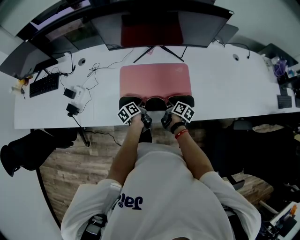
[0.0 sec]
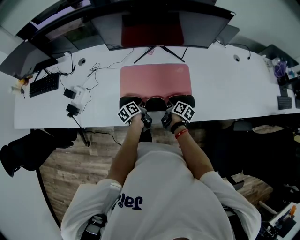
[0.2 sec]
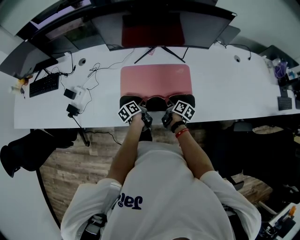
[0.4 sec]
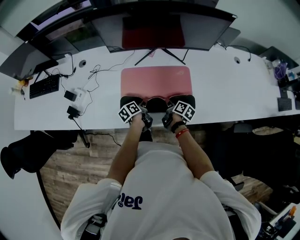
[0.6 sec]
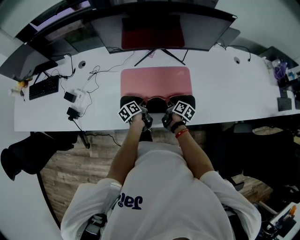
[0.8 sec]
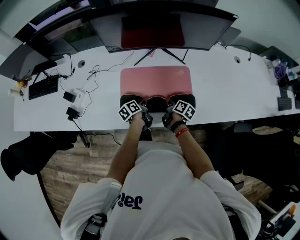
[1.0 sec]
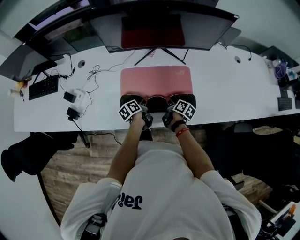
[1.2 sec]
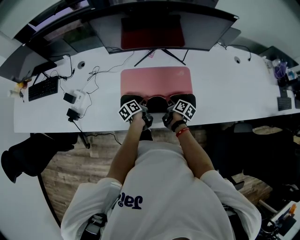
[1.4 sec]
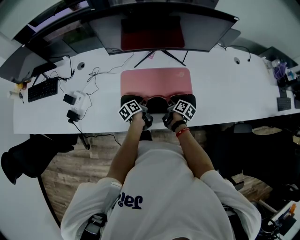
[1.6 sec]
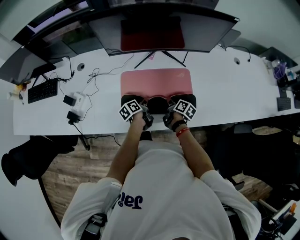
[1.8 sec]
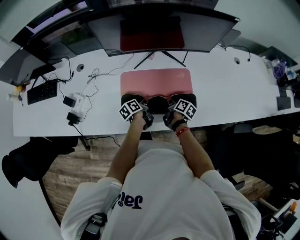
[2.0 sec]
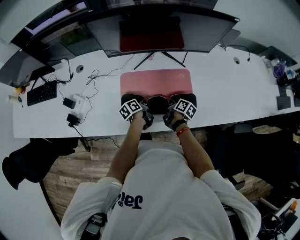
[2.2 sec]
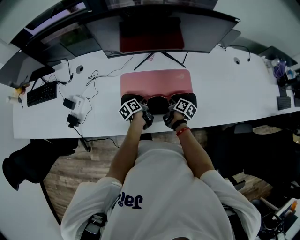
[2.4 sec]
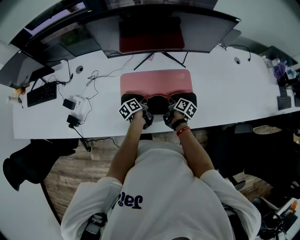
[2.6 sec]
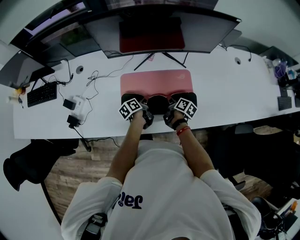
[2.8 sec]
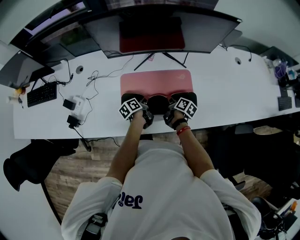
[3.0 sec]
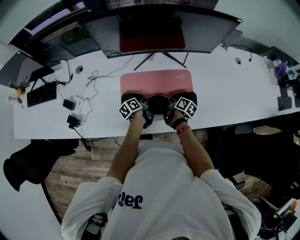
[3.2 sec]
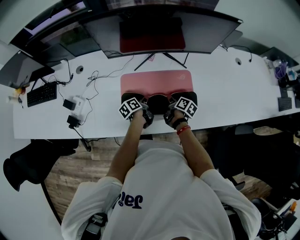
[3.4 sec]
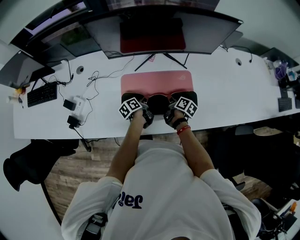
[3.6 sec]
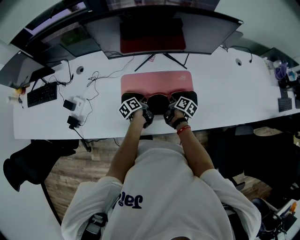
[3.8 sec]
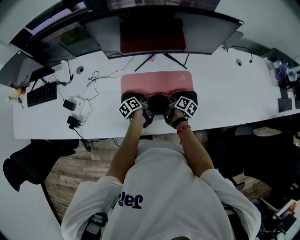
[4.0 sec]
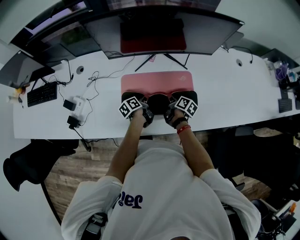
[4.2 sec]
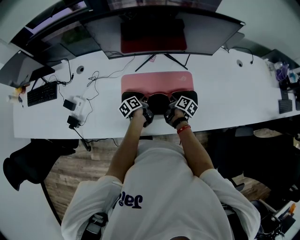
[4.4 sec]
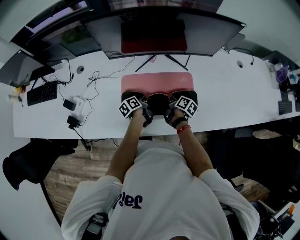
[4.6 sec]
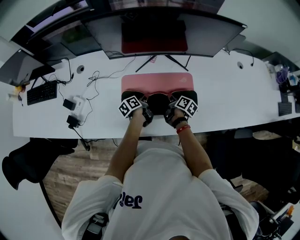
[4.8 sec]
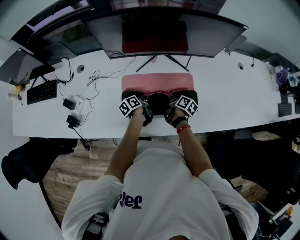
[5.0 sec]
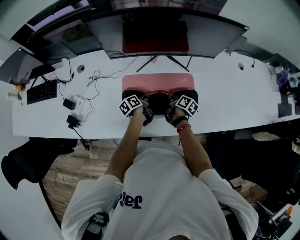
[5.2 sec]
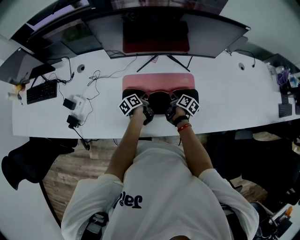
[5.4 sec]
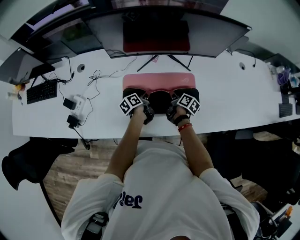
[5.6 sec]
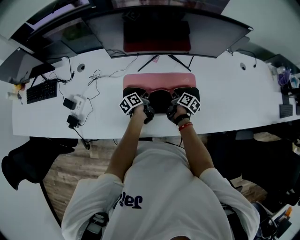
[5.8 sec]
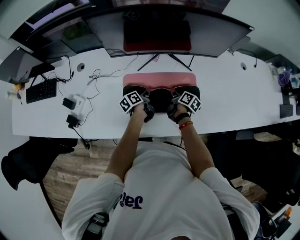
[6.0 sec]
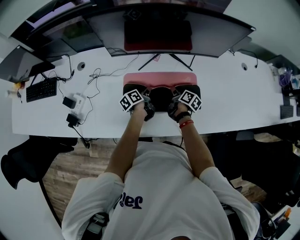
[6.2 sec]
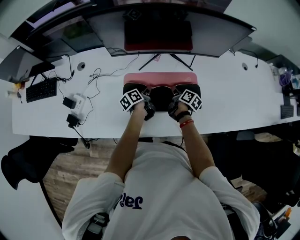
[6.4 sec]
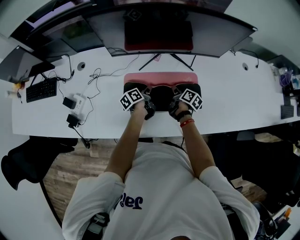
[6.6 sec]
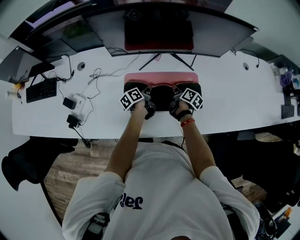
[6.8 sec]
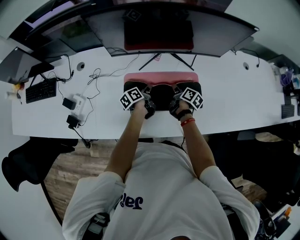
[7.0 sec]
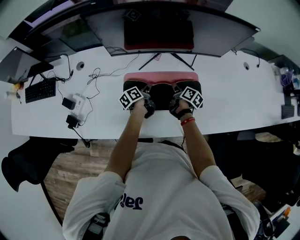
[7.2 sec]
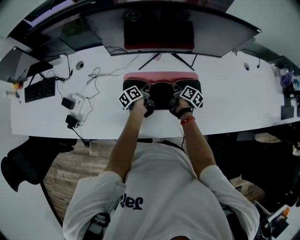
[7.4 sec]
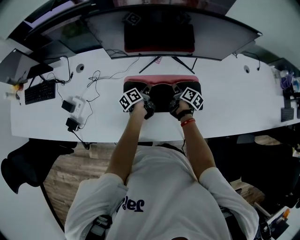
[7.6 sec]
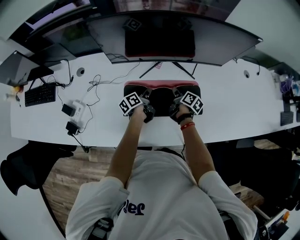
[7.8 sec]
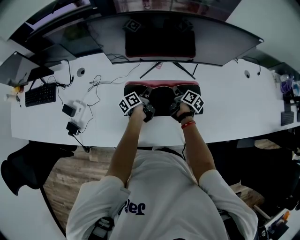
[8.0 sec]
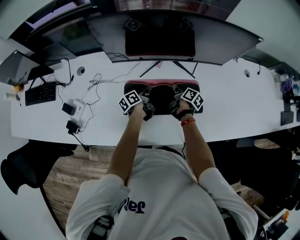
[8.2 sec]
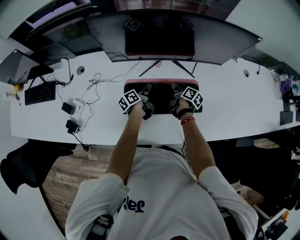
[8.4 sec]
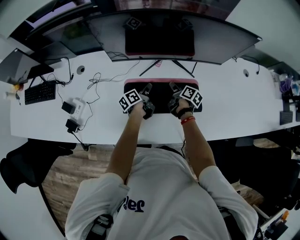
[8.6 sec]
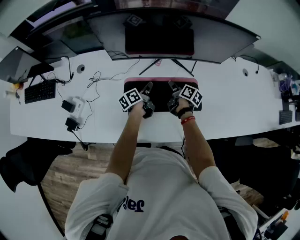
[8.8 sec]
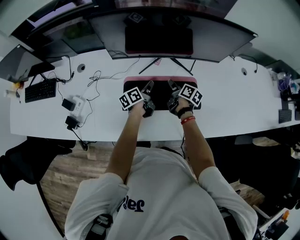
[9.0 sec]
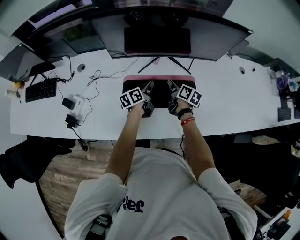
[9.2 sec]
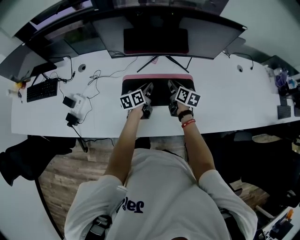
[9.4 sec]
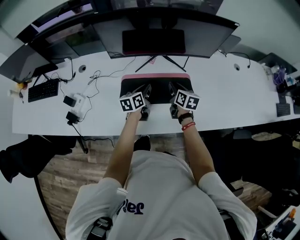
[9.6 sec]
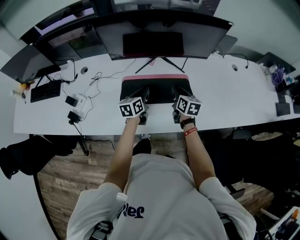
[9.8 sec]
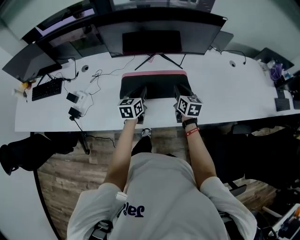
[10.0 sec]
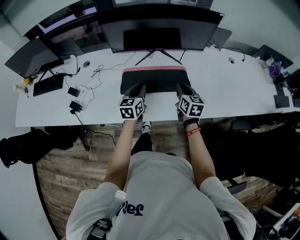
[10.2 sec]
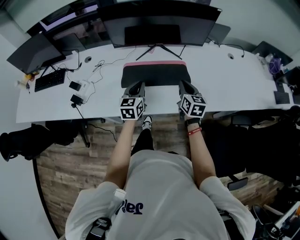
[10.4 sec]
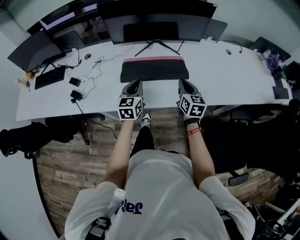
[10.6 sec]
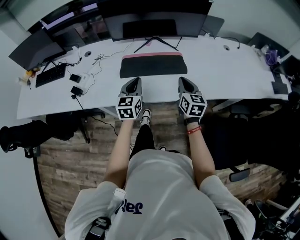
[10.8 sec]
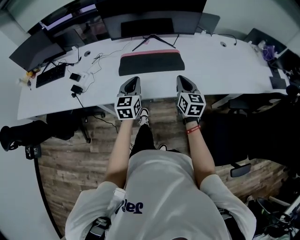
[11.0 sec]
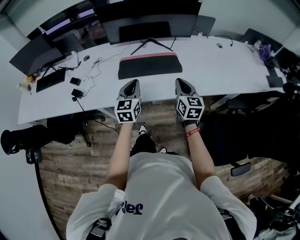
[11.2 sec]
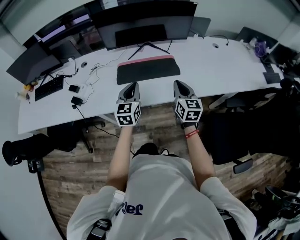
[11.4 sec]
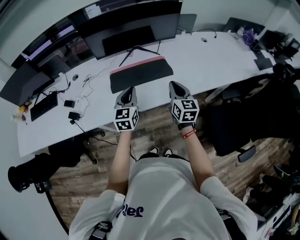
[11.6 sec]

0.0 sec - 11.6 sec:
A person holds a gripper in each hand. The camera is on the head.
0.0 sec - 1.4 sec: The grippers move only a little.
1.4 sec - 2.8 sec: The grippers make only small movements.
2.8 sec - 4.4 sec: There are only small adjustments of the grippers.
4.4 sec - 5.8 sec: The grippers move only a little.
5.8 sec - 7.2 sec: The grippers stay close to where they were, moving slightly.
7.2 sec - 8.8 sec: The right gripper ends up roughly 5 cm from where it was, and opens its fingers.
8.8 sec - 10.2 sec: The grippers both shift backward and upward by roughly 25 cm. The right gripper rotates around the line of its fingers by approximately 40 degrees, counterclockwise from behind, and closes its fingers; the left gripper twists some 50 degrees clockwise, seen from behind.
10.2 sec - 11.6 sec: The two grippers go some 15 cm backward and upward.

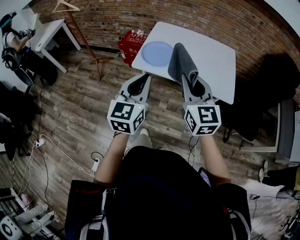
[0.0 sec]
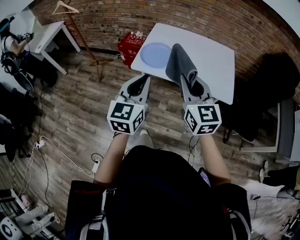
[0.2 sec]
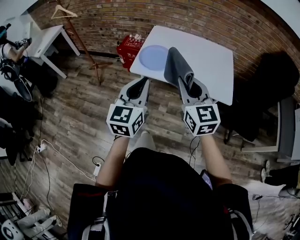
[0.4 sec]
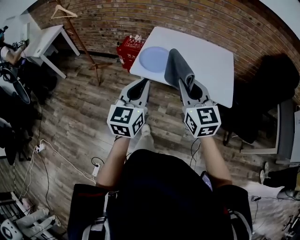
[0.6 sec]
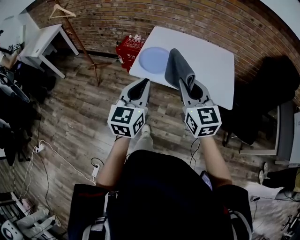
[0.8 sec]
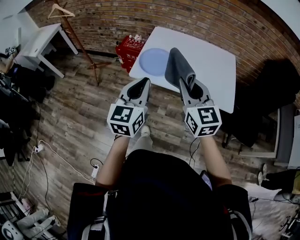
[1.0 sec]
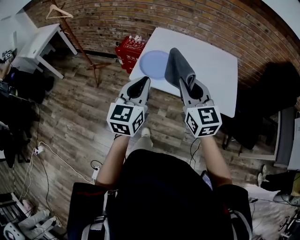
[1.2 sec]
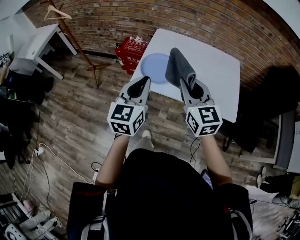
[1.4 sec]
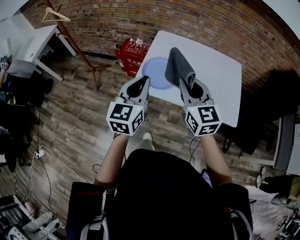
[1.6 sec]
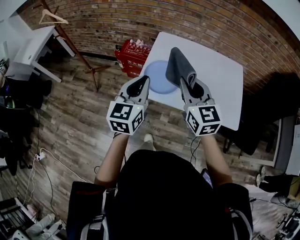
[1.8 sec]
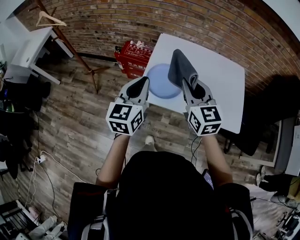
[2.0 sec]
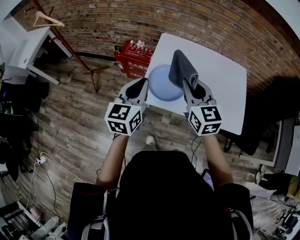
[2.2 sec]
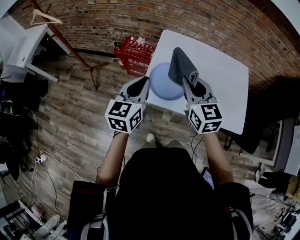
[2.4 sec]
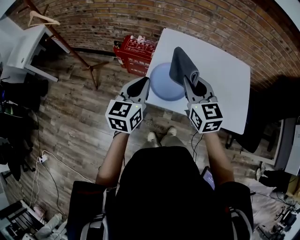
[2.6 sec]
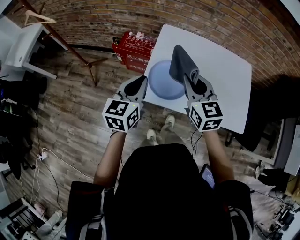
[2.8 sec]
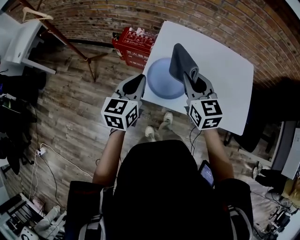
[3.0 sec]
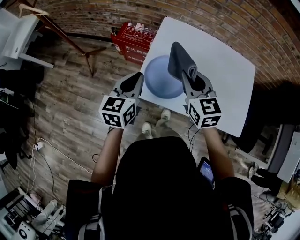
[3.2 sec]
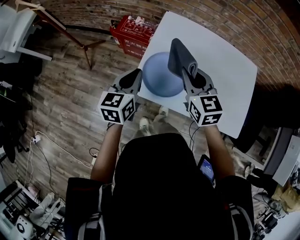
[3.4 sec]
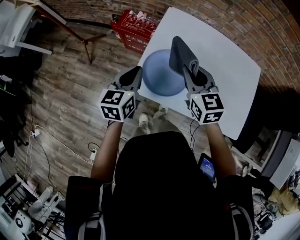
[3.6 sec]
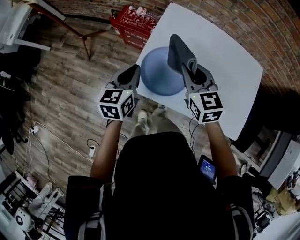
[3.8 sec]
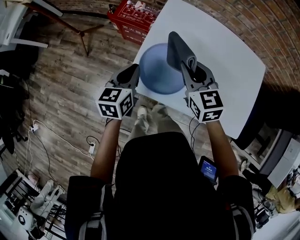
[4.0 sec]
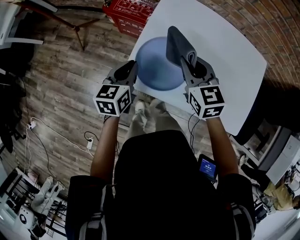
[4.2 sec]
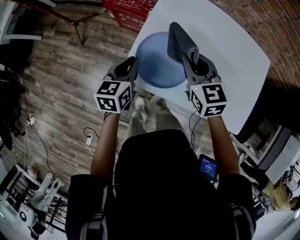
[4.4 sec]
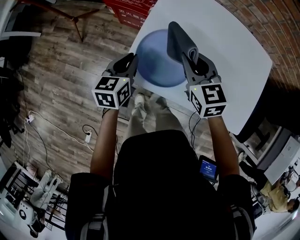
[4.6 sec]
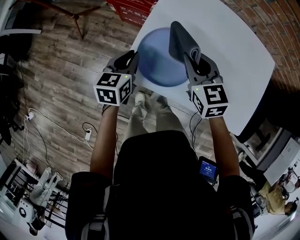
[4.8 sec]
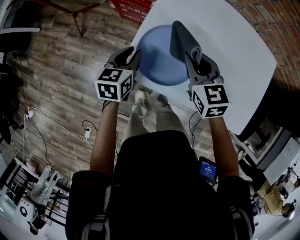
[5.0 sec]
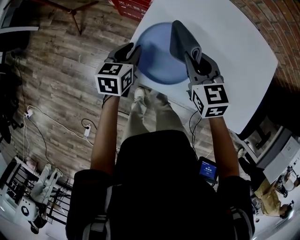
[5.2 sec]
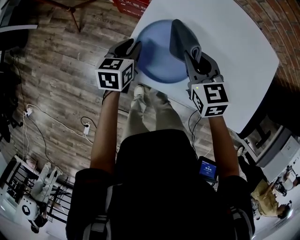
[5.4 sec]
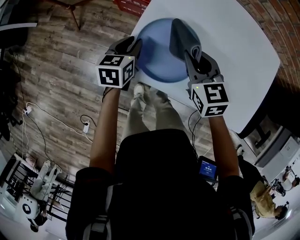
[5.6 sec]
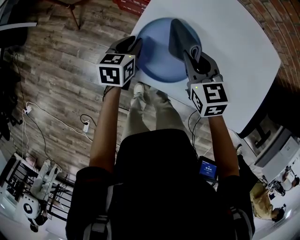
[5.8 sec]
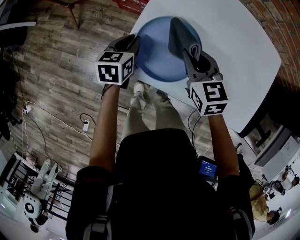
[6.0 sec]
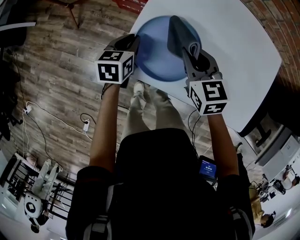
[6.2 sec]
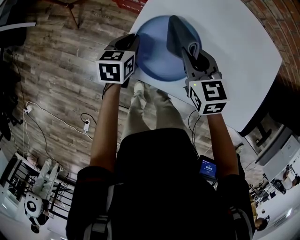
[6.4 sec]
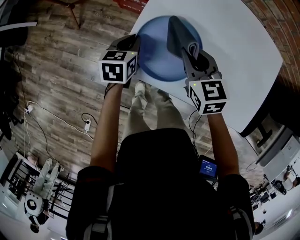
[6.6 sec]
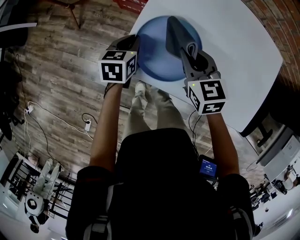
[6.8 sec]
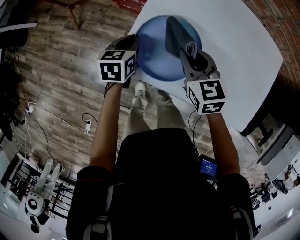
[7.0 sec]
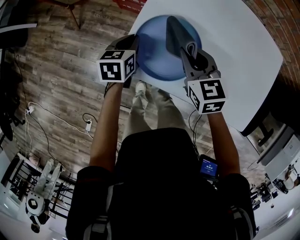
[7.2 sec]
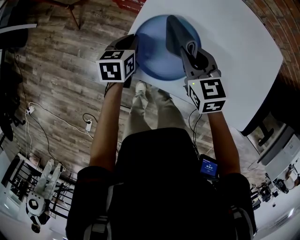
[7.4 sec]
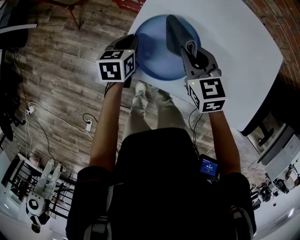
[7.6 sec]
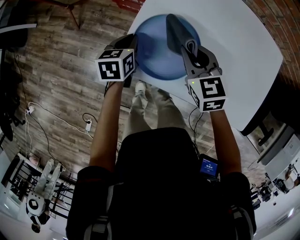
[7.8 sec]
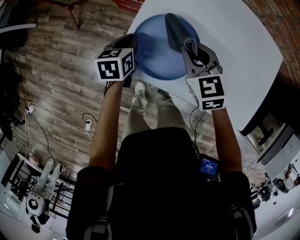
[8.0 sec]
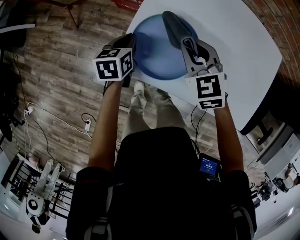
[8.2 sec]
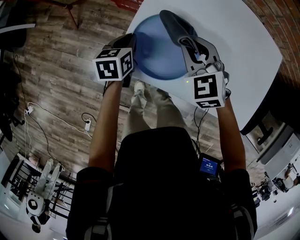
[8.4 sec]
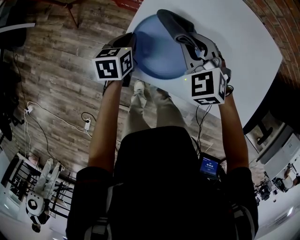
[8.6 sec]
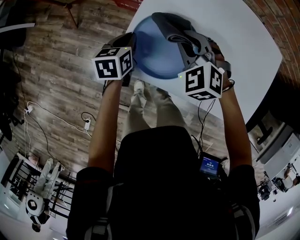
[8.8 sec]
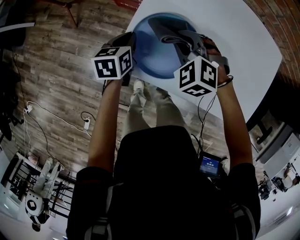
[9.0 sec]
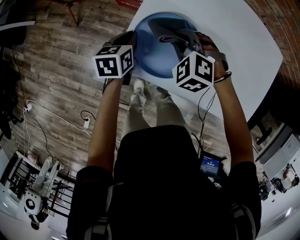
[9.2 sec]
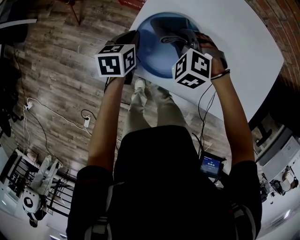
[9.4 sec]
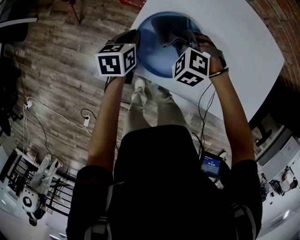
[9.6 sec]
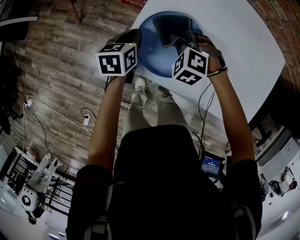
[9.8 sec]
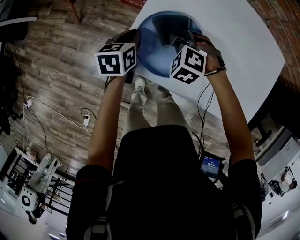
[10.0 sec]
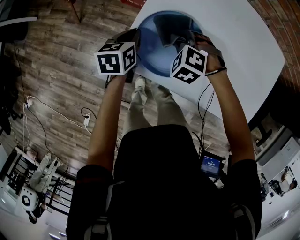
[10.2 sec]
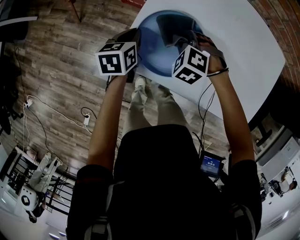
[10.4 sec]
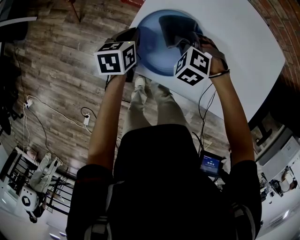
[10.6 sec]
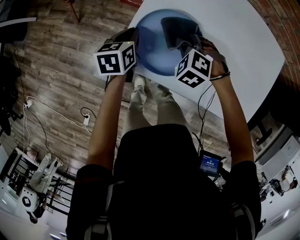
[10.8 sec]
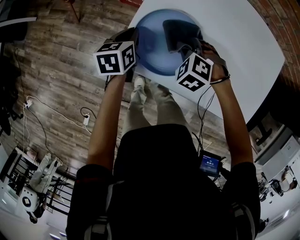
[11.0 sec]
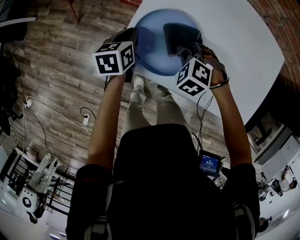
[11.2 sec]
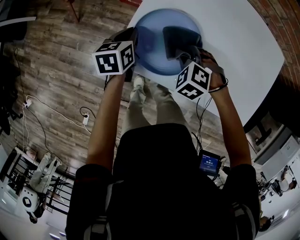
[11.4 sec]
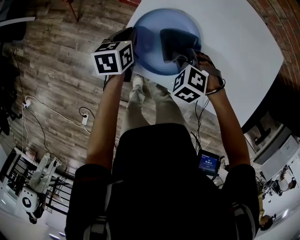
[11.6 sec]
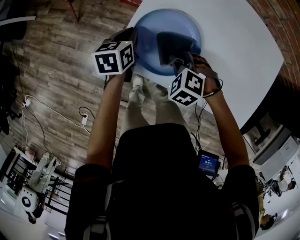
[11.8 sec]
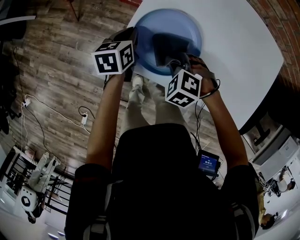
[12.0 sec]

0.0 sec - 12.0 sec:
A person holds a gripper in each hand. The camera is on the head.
0.0 sec - 1.6 sec: The two grippers go approximately 20 cm forward.
1.6 sec - 3.0 sec: The left gripper goes some 20 cm forward, downward and to the left. Meanwhile the right gripper travels forward and downward by about 15 cm.
3.0 sec - 4.4 sec: The right gripper is displaced downward and forward by roughly 15 cm. The left gripper travels downward by some 15 cm.
4.4 sec - 6.0 sec: Both grippers move downward, roughly 10 cm.
6.0 sec - 7.6 sec: The two grippers keep their place.
7.6 sec - 9.0 sec: The right gripper rolls counterclockwise, seen from behind, by about 50 degrees.
9.0 sec - 10.4 sec: The right gripper is displaced downward by some 5 cm.
10.4 sec - 12.0 sec: The right gripper travels backward by roughly 10 cm.
